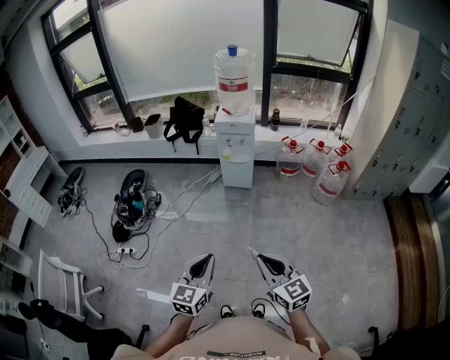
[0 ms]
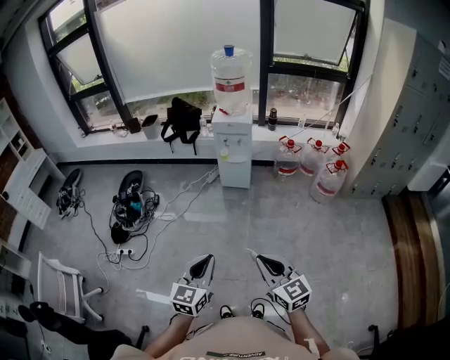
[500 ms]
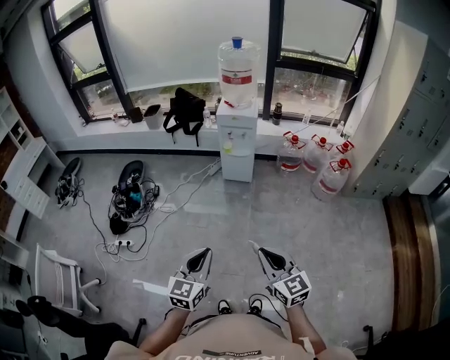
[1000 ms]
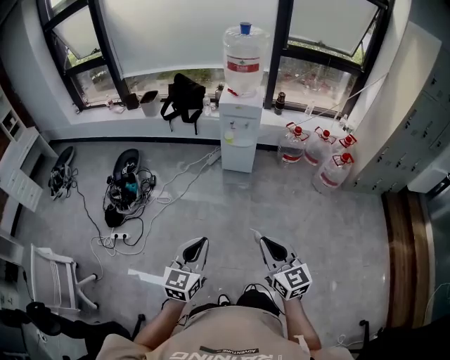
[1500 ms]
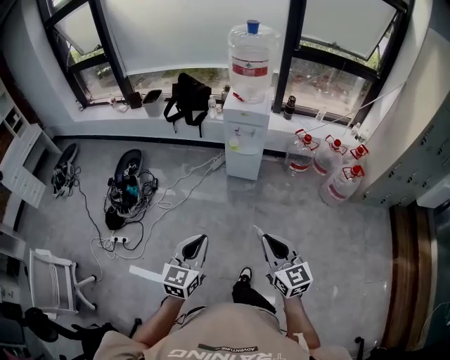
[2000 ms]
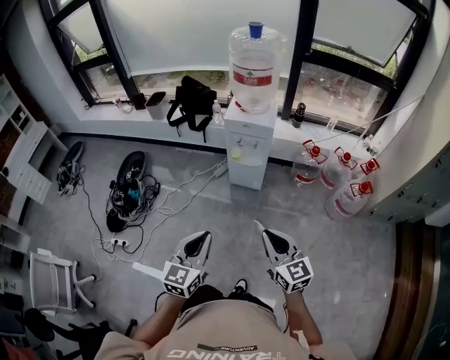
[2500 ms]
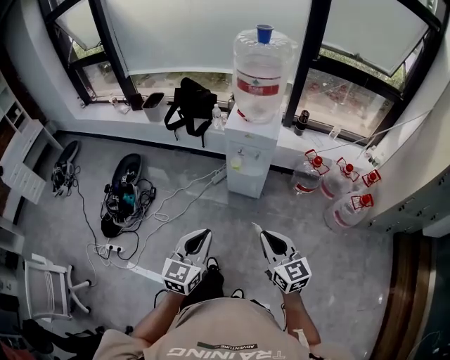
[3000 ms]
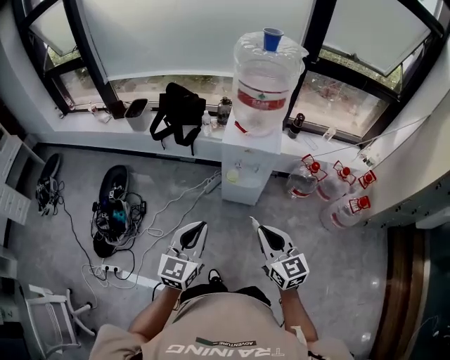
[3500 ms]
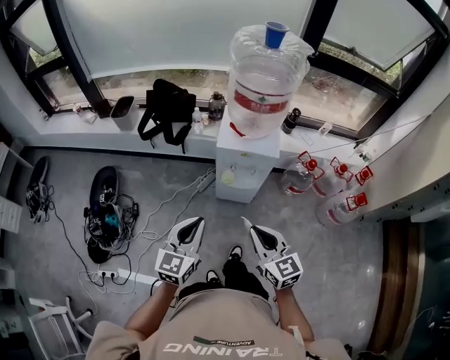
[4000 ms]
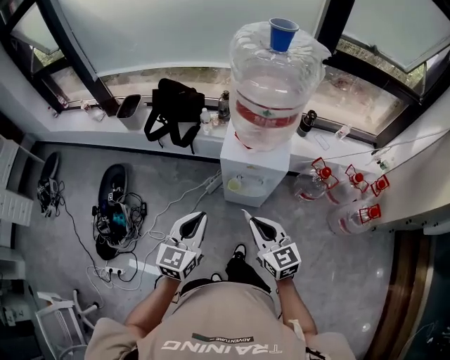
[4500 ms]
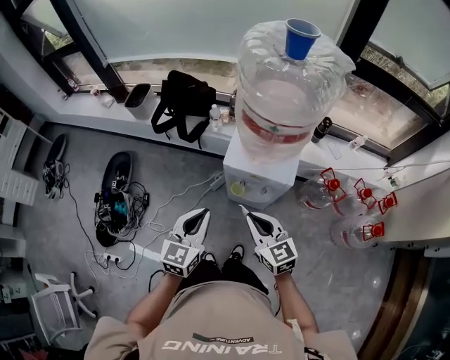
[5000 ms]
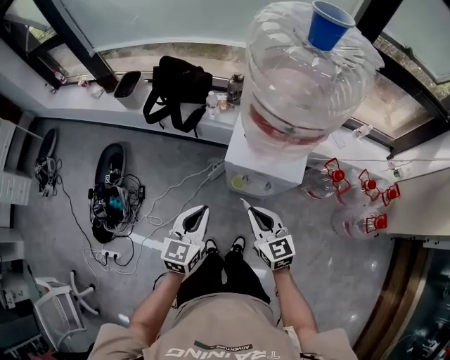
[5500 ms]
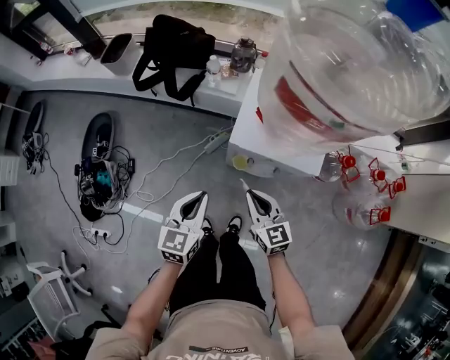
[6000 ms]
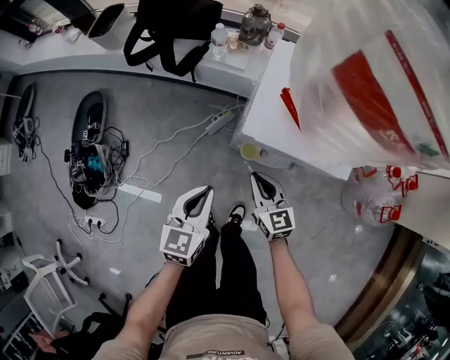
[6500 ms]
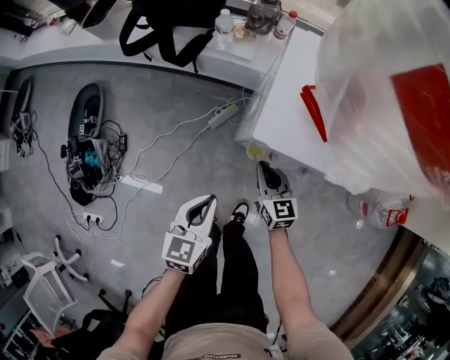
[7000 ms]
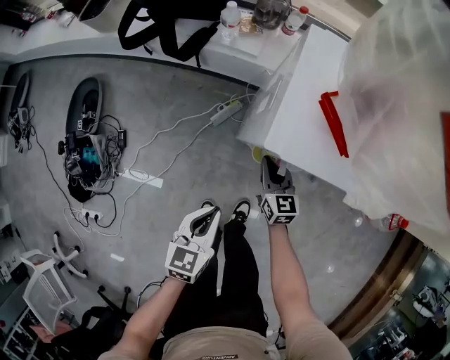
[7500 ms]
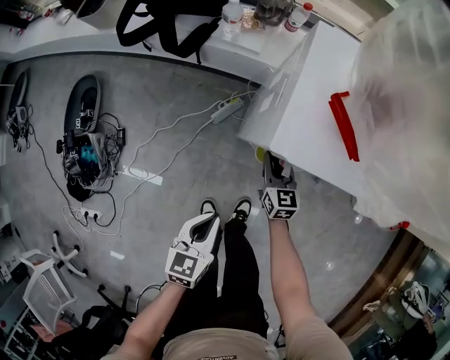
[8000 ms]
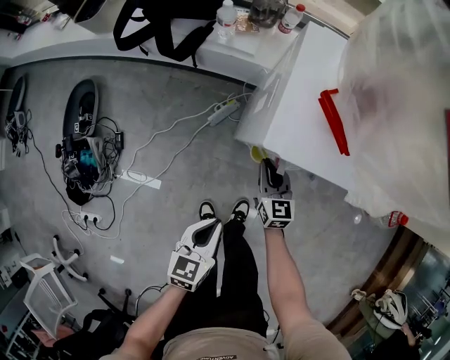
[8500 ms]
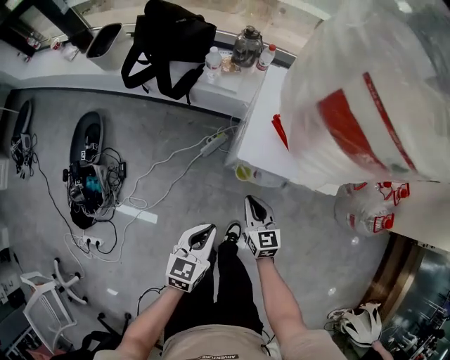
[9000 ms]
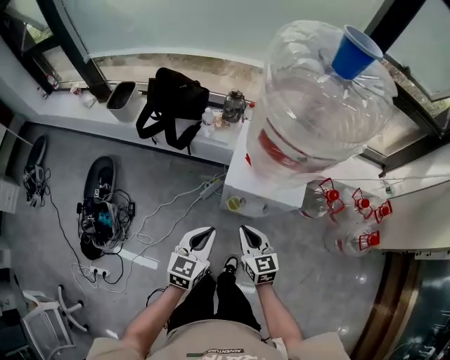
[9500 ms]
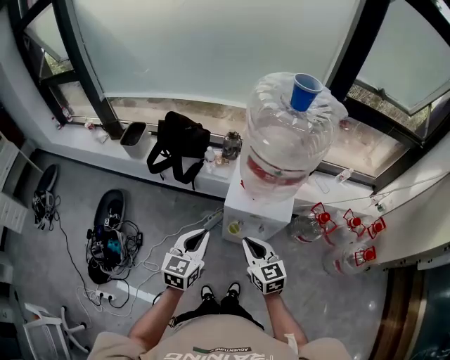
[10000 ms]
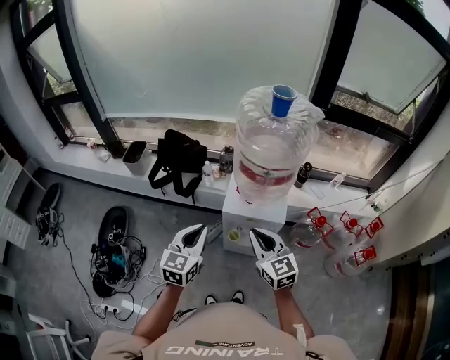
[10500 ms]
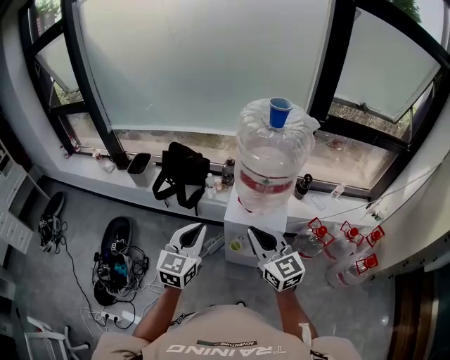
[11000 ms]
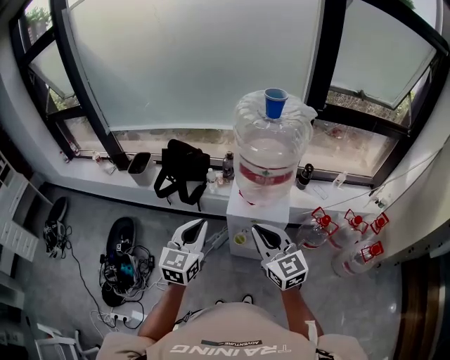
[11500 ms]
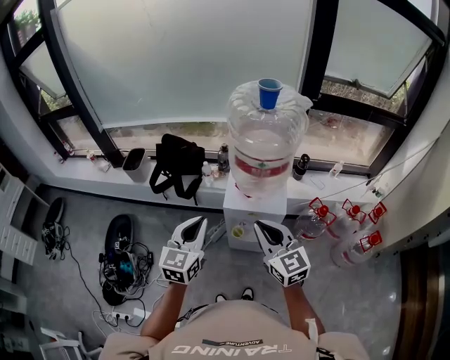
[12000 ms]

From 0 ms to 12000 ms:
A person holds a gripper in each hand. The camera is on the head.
From 0 ms to 2000 ms: Both grippers travel together forward, roughly 20 cm.
From 2000 ms to 4000 ms: The pair of grippers is taken forward, some 40 cm.
From 4000 ms to 6000 ms: The grippers both shift forward and downward by approximately 30 cm.
From 6000 ms to 8000 ms: The left gripper heads downward, covering roughly 20 cm. Meanwhile the right gripper moves downward and forward, approximately 25 cm.
From 8000 ms to 10000 ms: The grippers both shift upward by about 35 cm. The left gripper rotates approximately 20 degrees.
From 10000 ms to 12000 ms: The grippers both shift upward by some 15 cm.

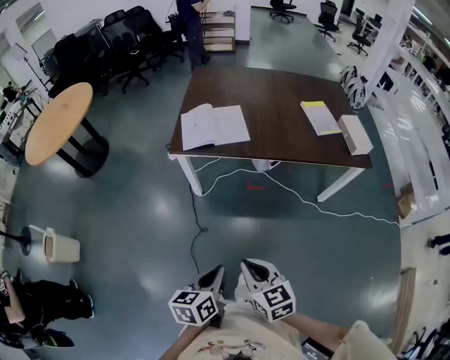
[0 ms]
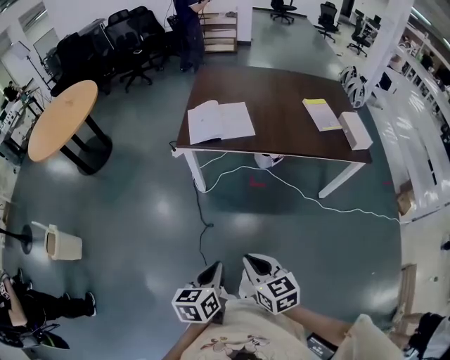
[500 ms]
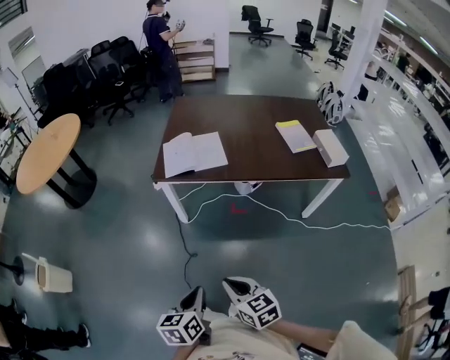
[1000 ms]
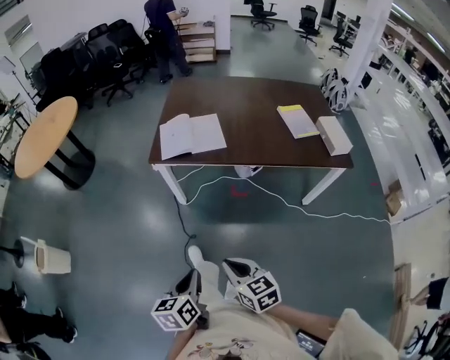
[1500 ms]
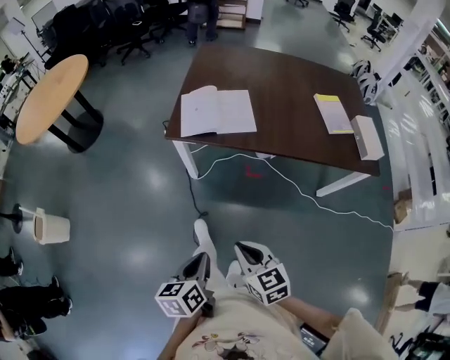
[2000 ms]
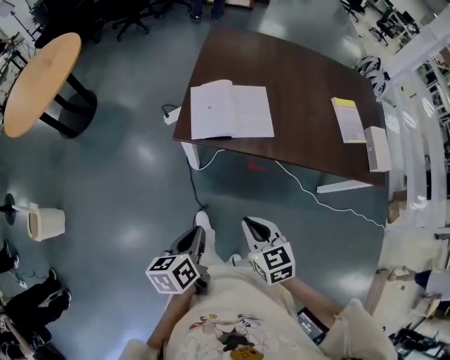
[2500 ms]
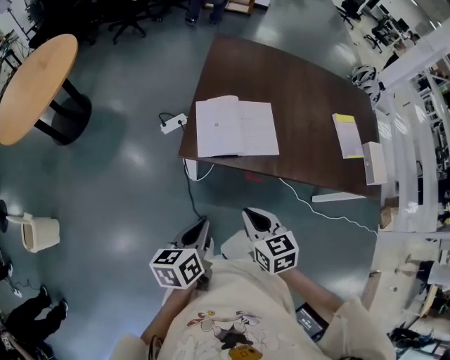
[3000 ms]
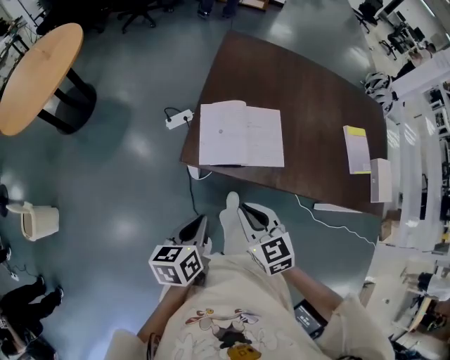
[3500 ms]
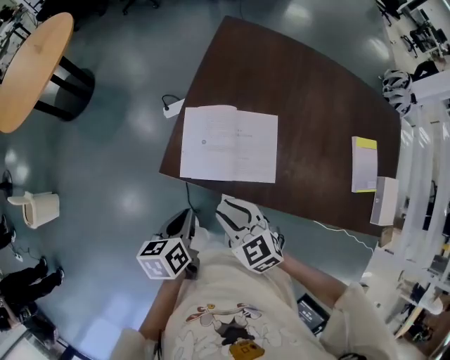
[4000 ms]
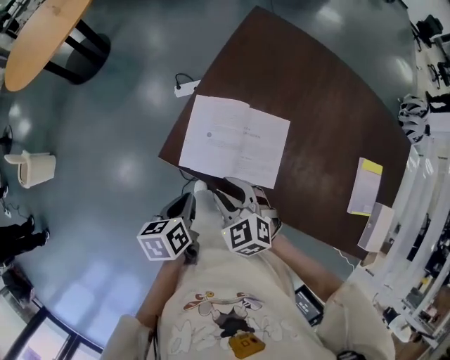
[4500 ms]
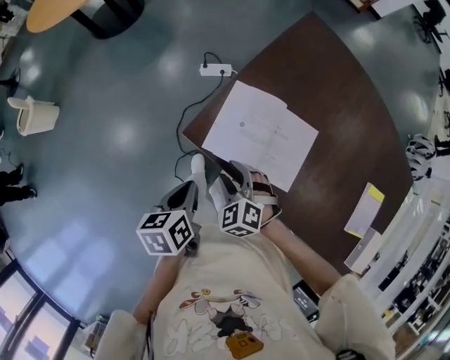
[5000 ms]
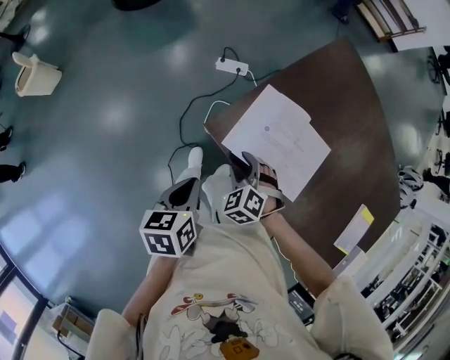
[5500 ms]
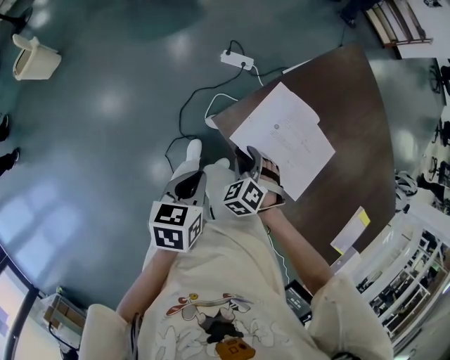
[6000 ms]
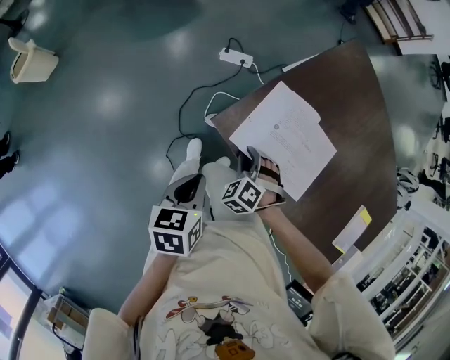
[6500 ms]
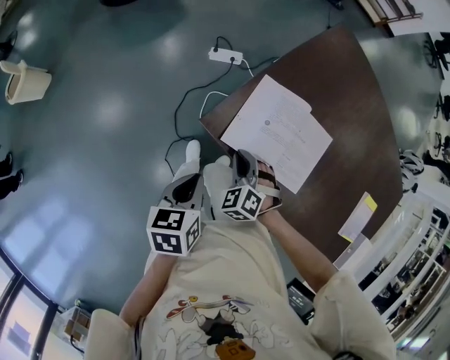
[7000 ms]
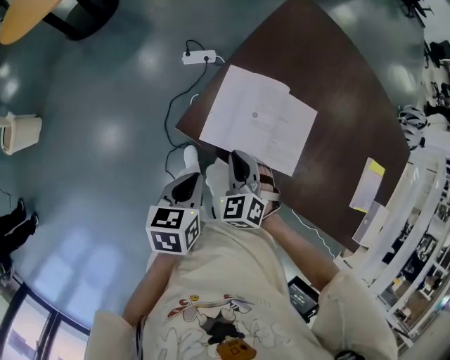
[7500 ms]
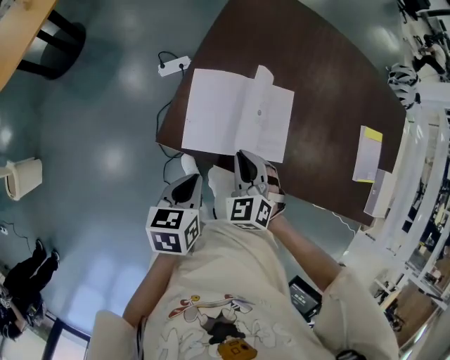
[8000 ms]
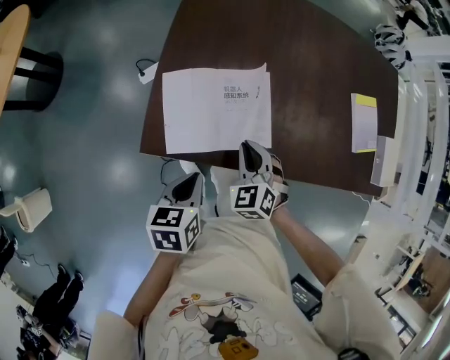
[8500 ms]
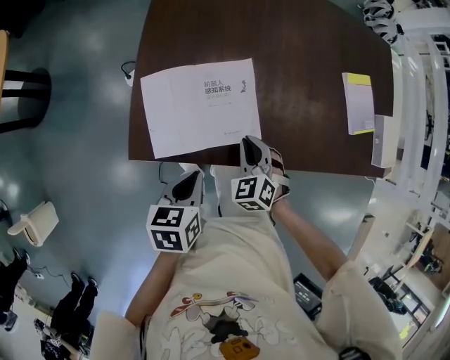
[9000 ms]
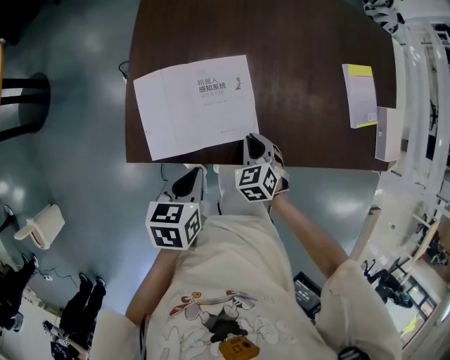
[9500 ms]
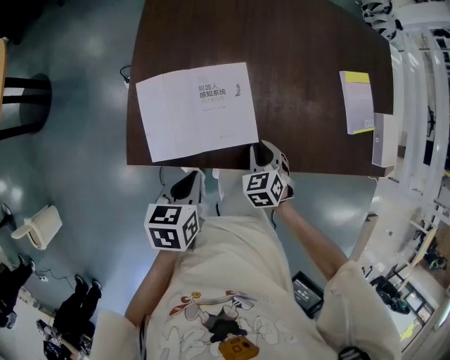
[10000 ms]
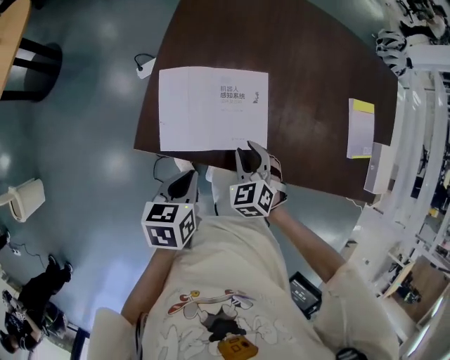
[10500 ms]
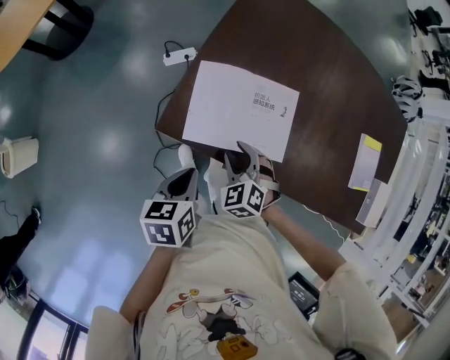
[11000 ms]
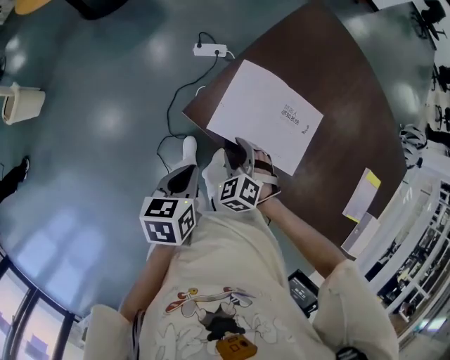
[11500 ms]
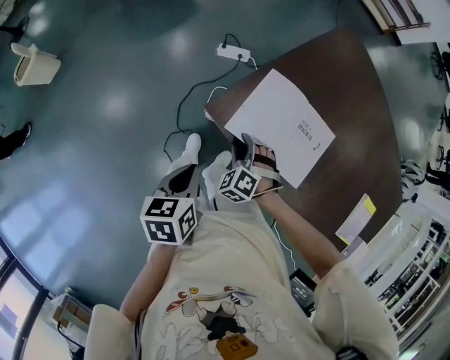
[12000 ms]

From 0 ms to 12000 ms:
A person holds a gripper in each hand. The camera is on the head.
From 0 ms to 2000 ms: Both grippers travel together forward, some 10 cm.
From 2000 ms to 4000 ms: Both grippers are carried forward, roughly 50 cm. The right gripper changes its angle by roughly 30 degrees, and opens its fingers.
From 4000 ms to 6000 ms: The right gripper travels downward, to the left and forward by some 25 cm, and twists about 40 degrees counterclockwise, seen from behind. The left gripper heads to the left and downward, covering about 15 cm.
From 6000 ms to 8000 ms: The right gripper heads to the right and upward, covering some 15 cm, rotates about 40 degrees, and closes up; the left gripper goes about 15 cm to the right and forward, and changes its angle by roughly 30 degrees.
From 8000 ms to 10000 ms: The left gripper is displaced to the right and forward by approximately 10 cm; the right gripper shifts some 20 cm to the right and downward, and changes its angle by approximately 30 degrees.
From 10000 ms to 12000 ms: The left gripper changes place by roughly 20 cm, and rotates some 50 degrees. Meanwhile the right gripper ends up approximately 30 cm from where it was, twists roughly 60 degrees counterclockwise, seen from behind, and opens up.

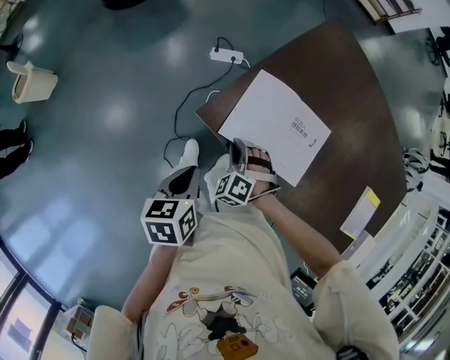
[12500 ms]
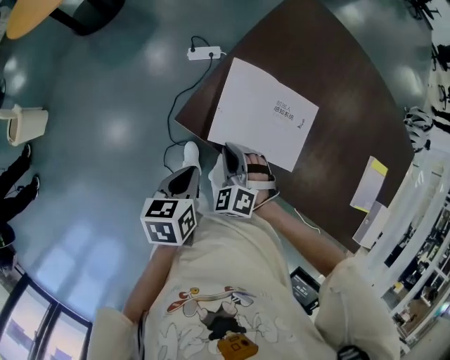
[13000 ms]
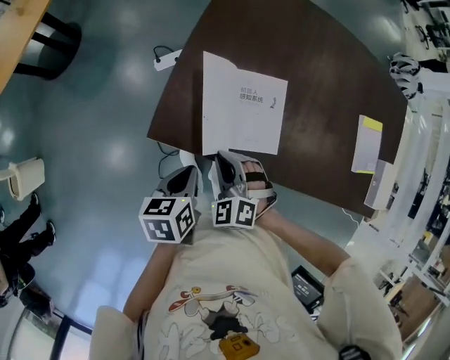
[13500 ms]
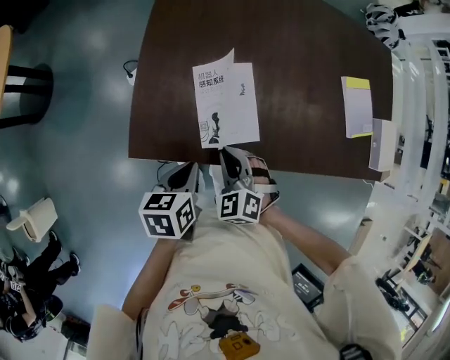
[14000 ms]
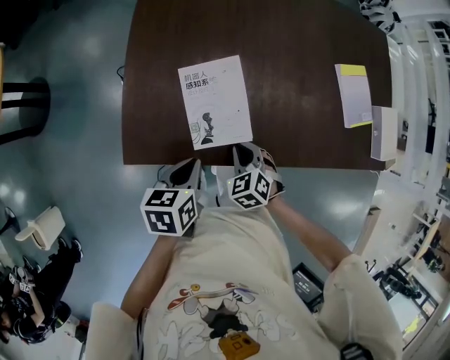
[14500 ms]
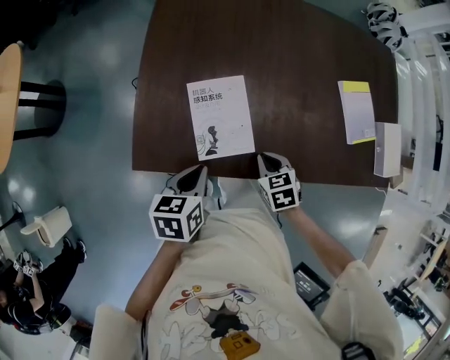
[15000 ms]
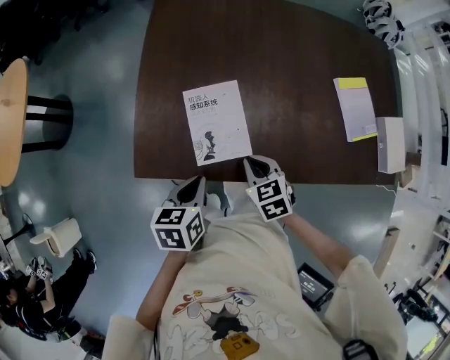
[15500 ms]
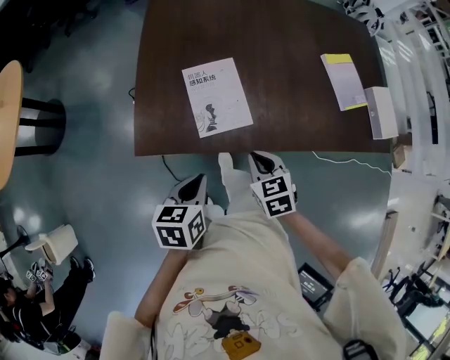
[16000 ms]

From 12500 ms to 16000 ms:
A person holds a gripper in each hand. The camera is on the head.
From 12500 ms to 14500 ms: The left gripper shifts by some 25 cm, and turns by some 50 degrees. Meanwhile the right gripper moves approximately 10 cm upward and comes back, and twists about 60 degrees clockwise, seen from behind.
From 14500 ms to 16000 ms: The left gripper heads backward, covering some 10 cm, while the right gripper shifts roughly 15 cm backward and upward, and swivels approximately 30 degrees.
